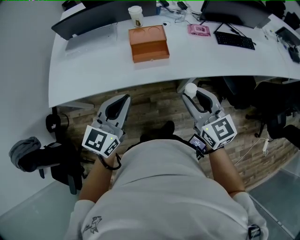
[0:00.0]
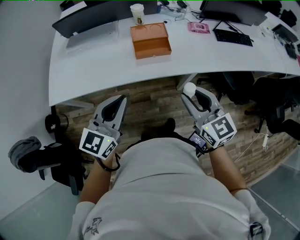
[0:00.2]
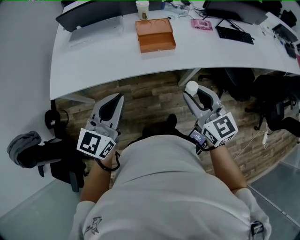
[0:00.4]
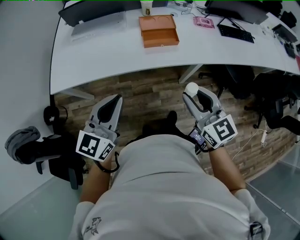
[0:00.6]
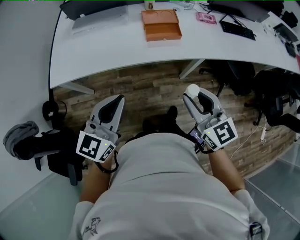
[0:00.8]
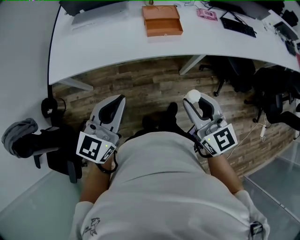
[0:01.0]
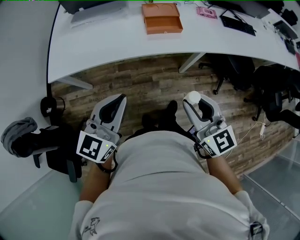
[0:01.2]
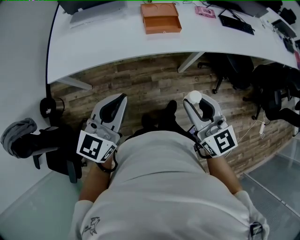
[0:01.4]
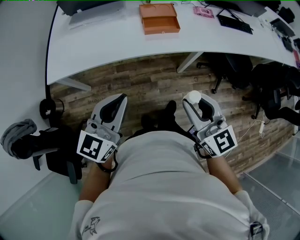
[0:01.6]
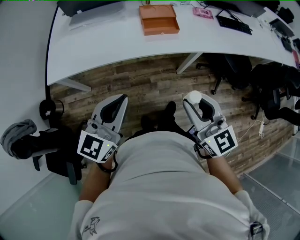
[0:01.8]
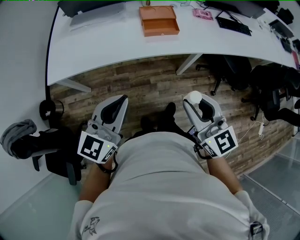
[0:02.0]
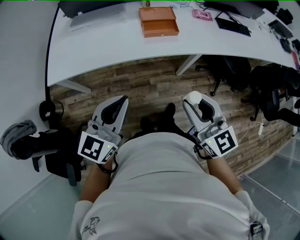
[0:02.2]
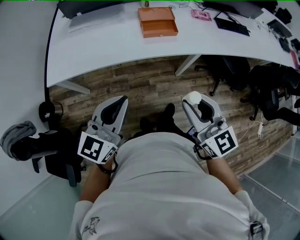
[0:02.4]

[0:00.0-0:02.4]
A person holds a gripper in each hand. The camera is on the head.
0:00.0 to 0:01.2: The two grippers go roughly 25 cm backward and to the left.
0:01.2 to 0:02.4: The grippers move only a little.

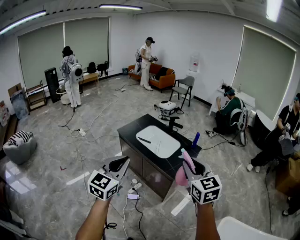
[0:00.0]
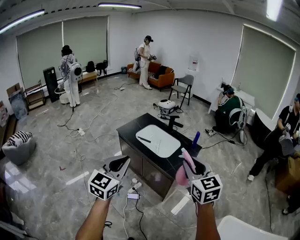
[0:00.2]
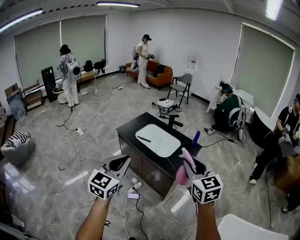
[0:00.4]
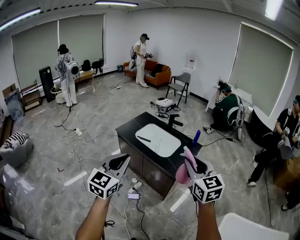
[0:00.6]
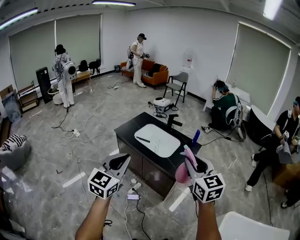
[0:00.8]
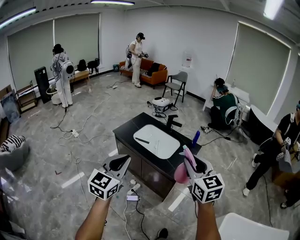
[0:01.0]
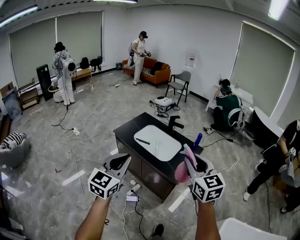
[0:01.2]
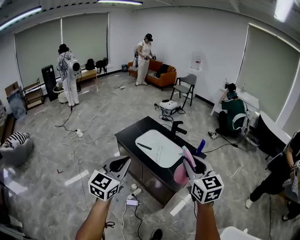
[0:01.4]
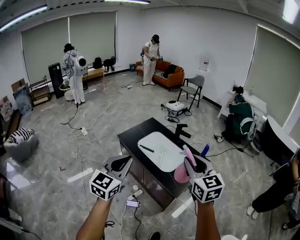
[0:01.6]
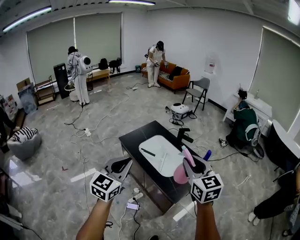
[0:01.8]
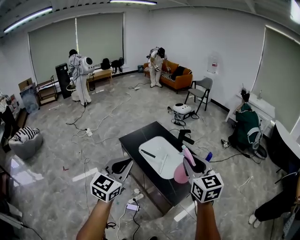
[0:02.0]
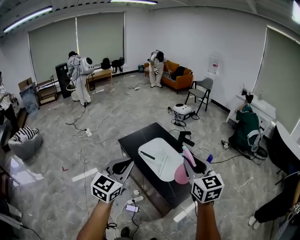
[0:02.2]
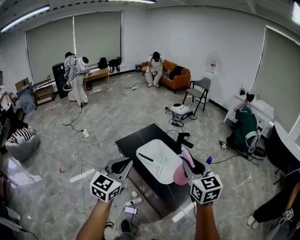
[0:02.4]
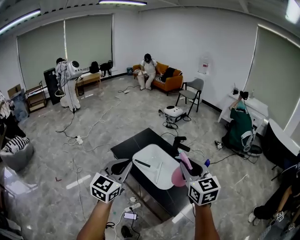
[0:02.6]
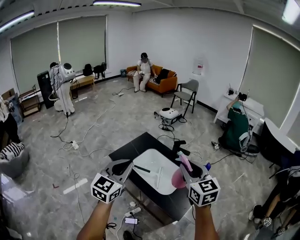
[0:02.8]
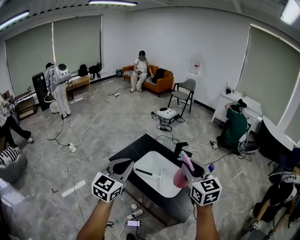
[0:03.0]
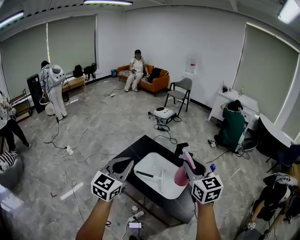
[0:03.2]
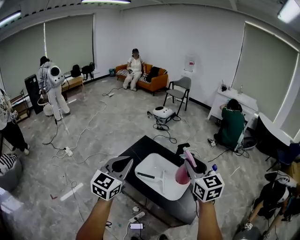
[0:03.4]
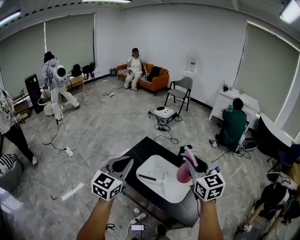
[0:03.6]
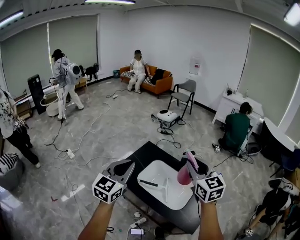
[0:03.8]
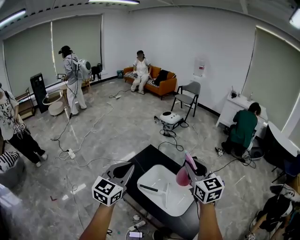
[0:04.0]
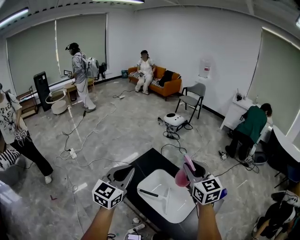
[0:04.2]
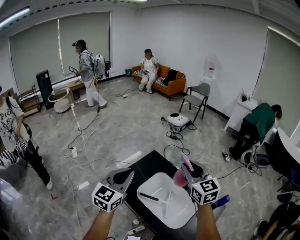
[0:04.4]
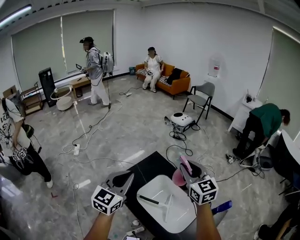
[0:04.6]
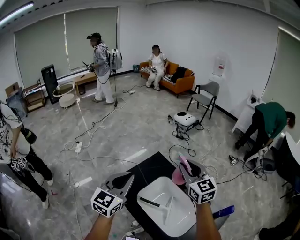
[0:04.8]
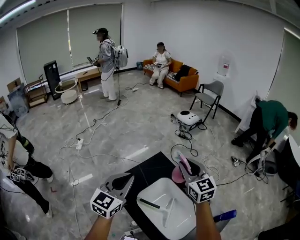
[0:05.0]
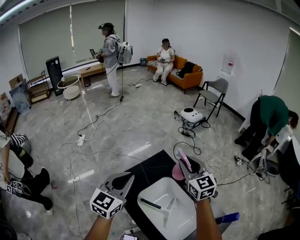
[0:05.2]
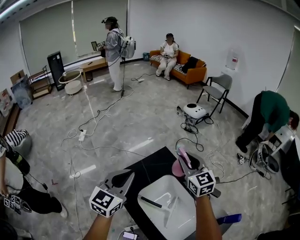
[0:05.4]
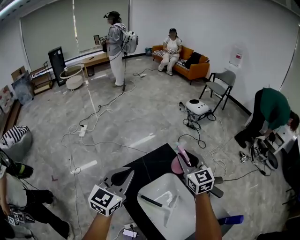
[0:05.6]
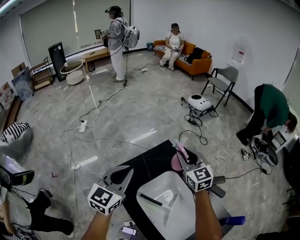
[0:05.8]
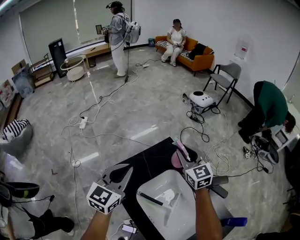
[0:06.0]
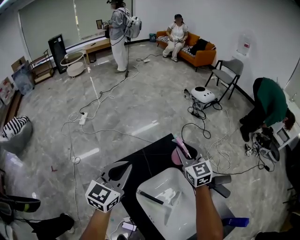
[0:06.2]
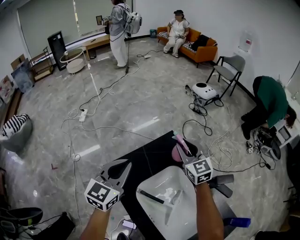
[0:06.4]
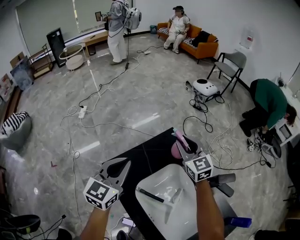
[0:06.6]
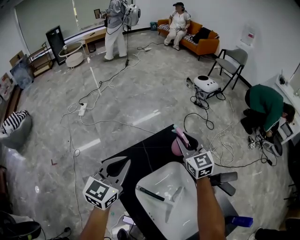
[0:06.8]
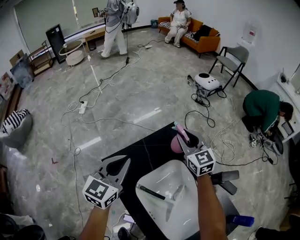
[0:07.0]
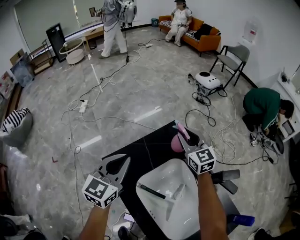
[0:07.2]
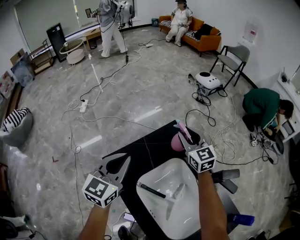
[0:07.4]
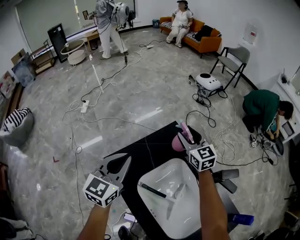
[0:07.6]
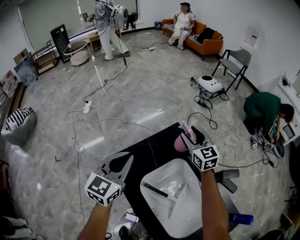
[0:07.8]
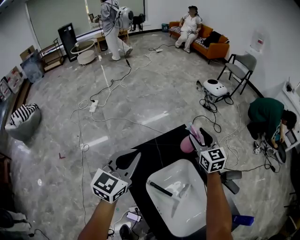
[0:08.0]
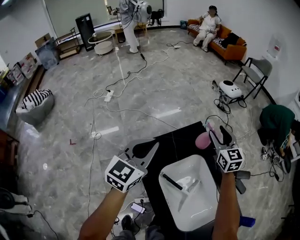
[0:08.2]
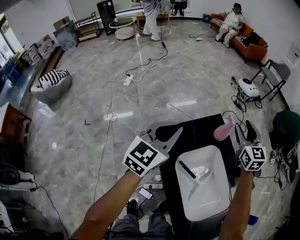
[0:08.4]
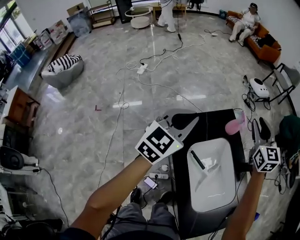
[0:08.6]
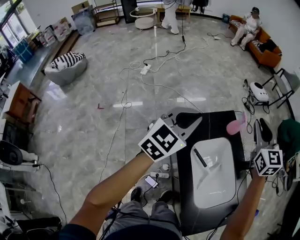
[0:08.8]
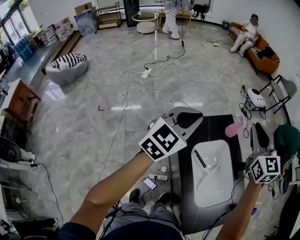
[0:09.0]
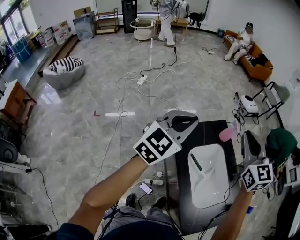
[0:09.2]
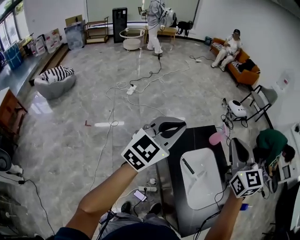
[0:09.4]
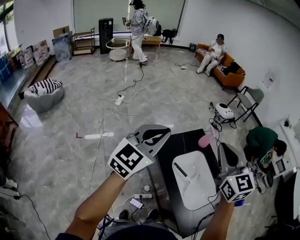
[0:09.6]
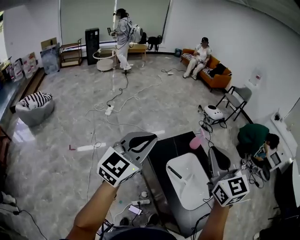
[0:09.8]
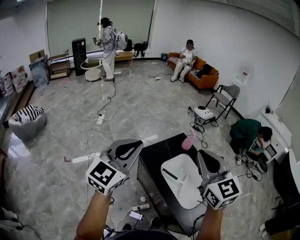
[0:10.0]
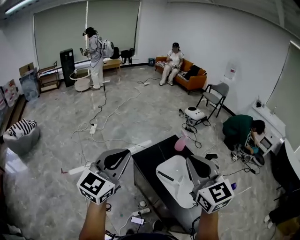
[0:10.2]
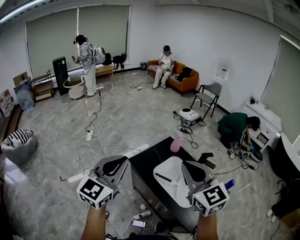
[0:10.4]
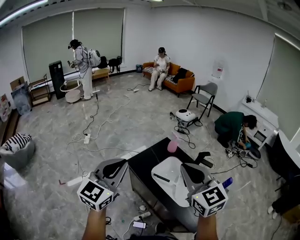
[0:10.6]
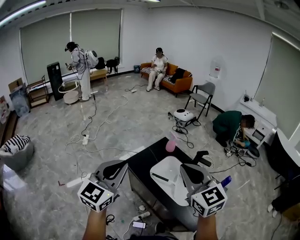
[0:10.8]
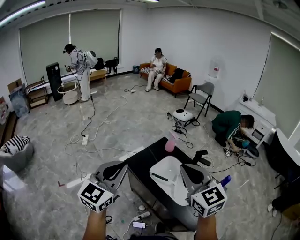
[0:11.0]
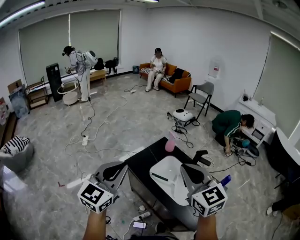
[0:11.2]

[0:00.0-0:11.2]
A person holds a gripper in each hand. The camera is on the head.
0:00.0 to 0:01.6: The two grippers go roughly 20 cm forward.
0:01.6 to 0:03.2: Both grippers move forward, approximately 30 cm.
0:03.2 to 0:04.8: The grippers both shift forward by approximately 30 cm.
0:04.8 to 0:06.4: The grippers both shift downward and forward by some 25 cm.
0:06.4 to 0:08.0: The right gripper opens up.
0:08.0 to 0:09.6: The right gripper heads backward, upward and to the left, covering roughly 60 cm, and closes up; the left gripper shifts some 40 cm upward, backward and to the left.
0:09.6 to 0:11.2: Both grippers travel together backward, some 15 cm.

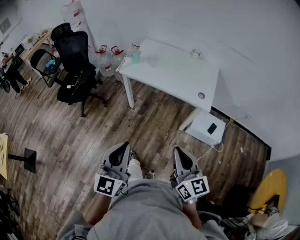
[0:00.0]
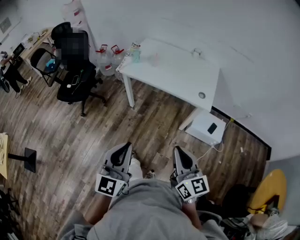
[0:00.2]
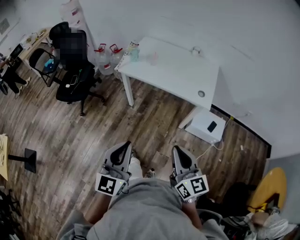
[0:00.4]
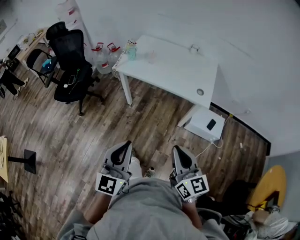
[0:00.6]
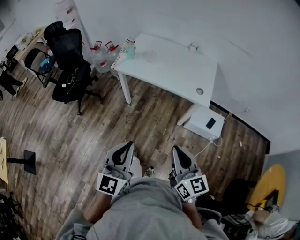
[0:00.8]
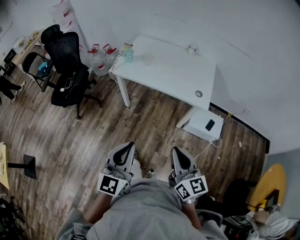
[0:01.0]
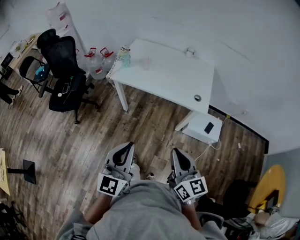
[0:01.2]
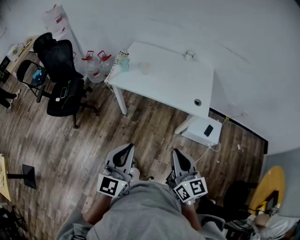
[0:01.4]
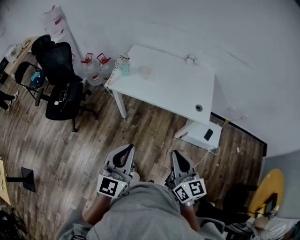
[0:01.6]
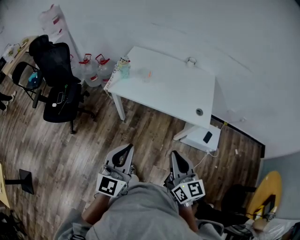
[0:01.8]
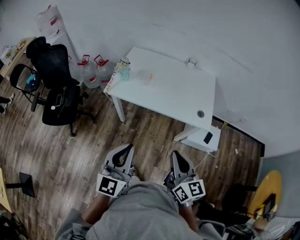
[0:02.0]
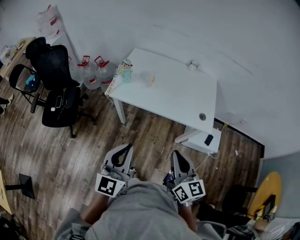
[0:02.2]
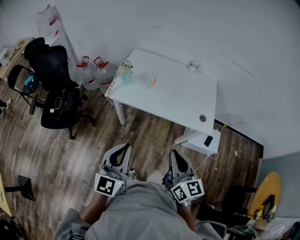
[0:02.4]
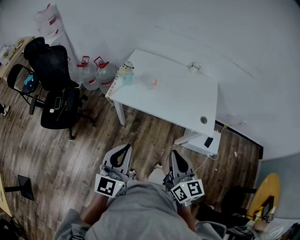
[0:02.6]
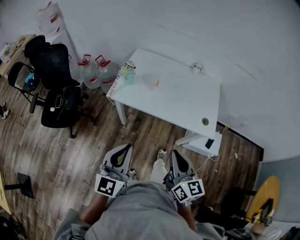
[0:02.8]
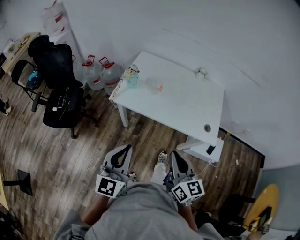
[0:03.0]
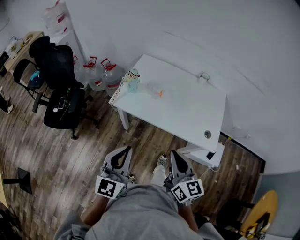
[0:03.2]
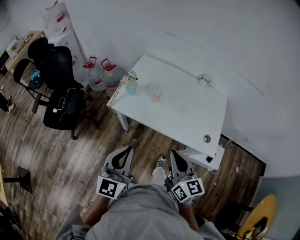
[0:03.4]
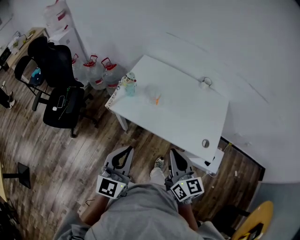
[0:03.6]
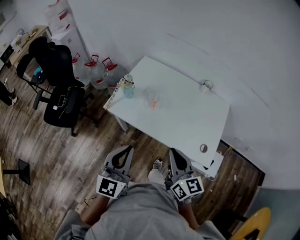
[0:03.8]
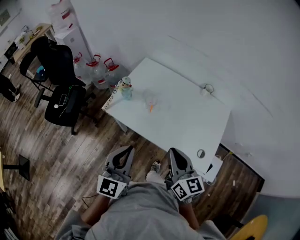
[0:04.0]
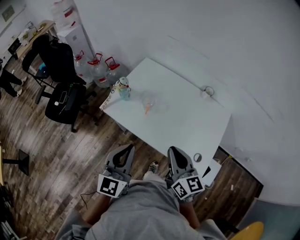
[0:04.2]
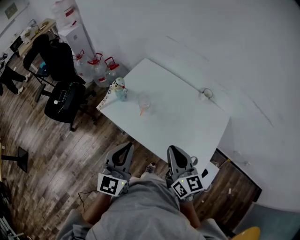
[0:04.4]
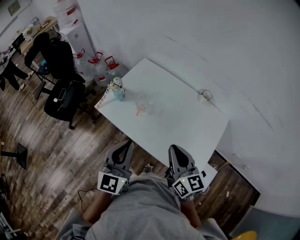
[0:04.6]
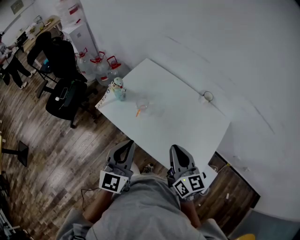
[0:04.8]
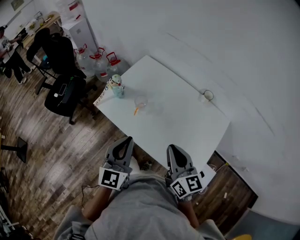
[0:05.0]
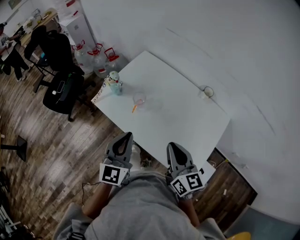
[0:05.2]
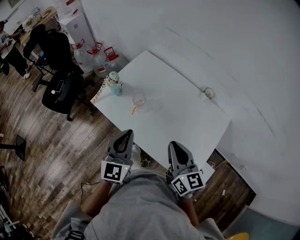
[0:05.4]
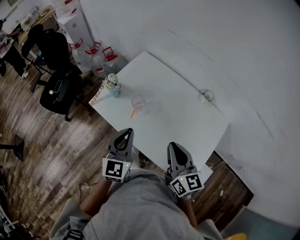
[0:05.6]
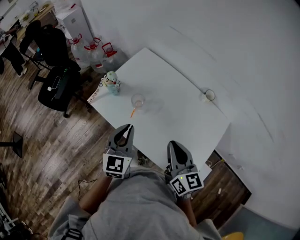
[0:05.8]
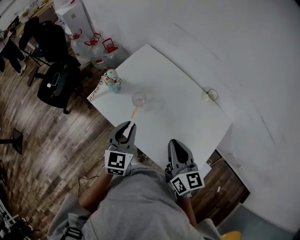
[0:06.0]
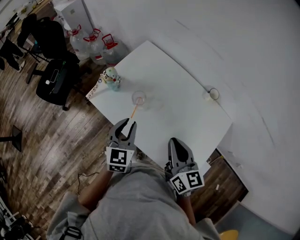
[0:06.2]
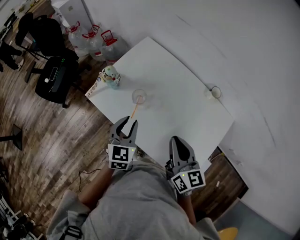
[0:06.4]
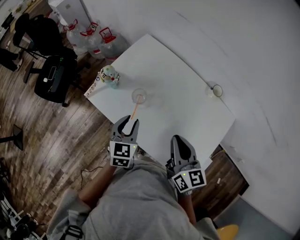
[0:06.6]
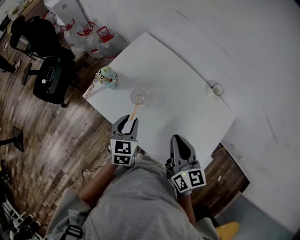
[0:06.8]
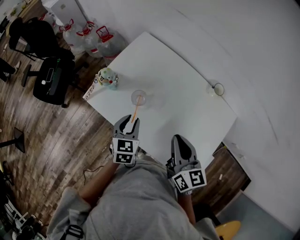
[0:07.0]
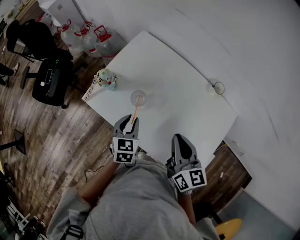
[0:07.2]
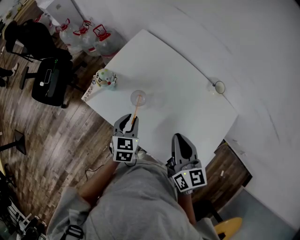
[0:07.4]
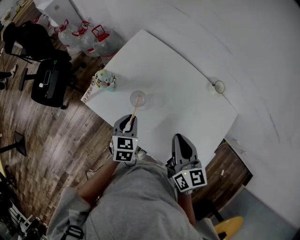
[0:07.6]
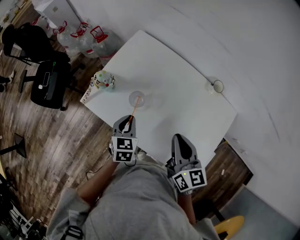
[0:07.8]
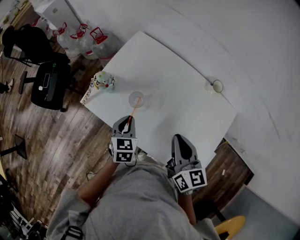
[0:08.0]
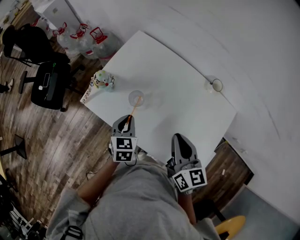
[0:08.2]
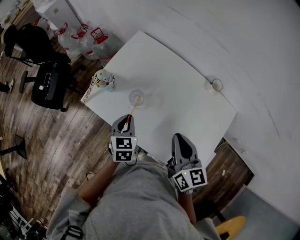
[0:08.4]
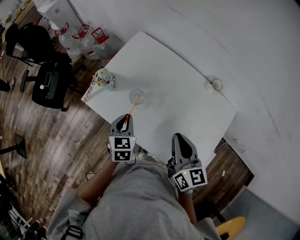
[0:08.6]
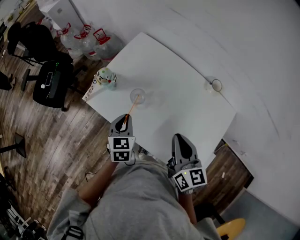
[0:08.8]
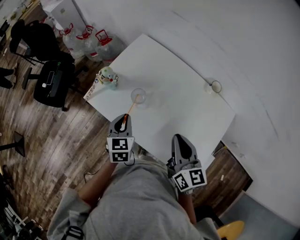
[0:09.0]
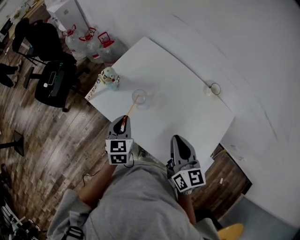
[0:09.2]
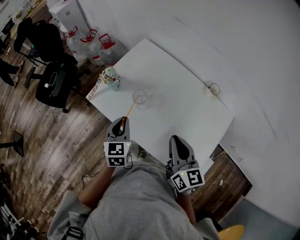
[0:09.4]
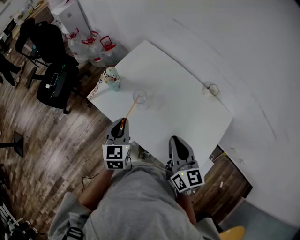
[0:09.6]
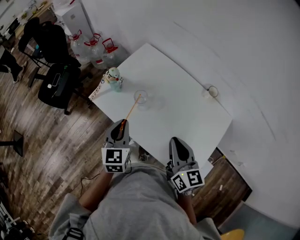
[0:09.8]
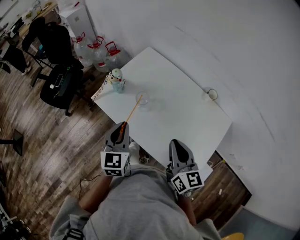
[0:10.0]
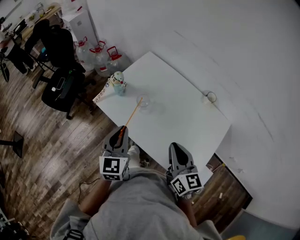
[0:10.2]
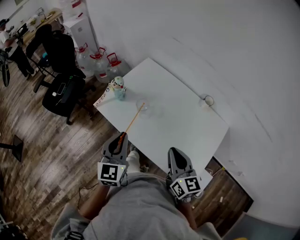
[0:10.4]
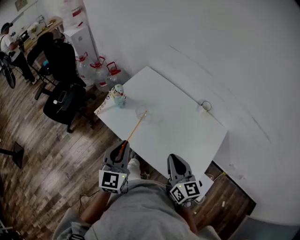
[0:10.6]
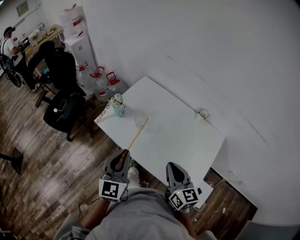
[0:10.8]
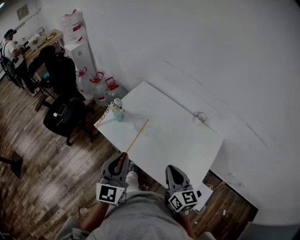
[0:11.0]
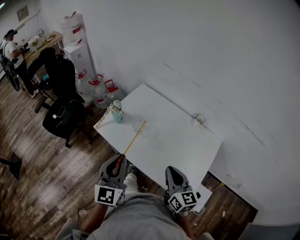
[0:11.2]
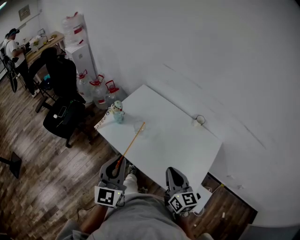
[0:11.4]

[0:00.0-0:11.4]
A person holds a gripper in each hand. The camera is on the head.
0:00.0 to 0:01.4: Both grippers move forward, some 10 cm.
0:01.4 to 0:02.8: The two grippers go approximately 20 cm forward and to the left.
0:02.8 to 0:04.2: Both grippers move forward and to the right, roughly 25 cm.
0:04.2 to 0:05.6: The right gripper shifts approximately 10 cm to the right and forward; the left gripper shifts approximately 15 cm forward, to the right and downward.
0:05.6 to 0:07.2: The right gripper goes some 10 cm forward. Meanwhile the left gripper goes approximately 20 cm downward and forward, swivels some 30 degrees, and opens up.
0:07.2 to 0:08.6: The grippers move only a little.
0:08.6 to 0:10.0: The right gripper travels backward by roughly 5 cm. The left gripper is displaced upward and backward by approximately 15 cm, and turns by approximately 20 degrees.
0:10.0 to 0:11.4: The right gripper heads backward, covering approximately 5 cm. The left gripper shifts roughly 15 cm backward and upward.
